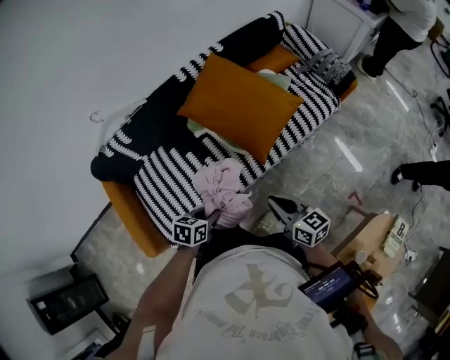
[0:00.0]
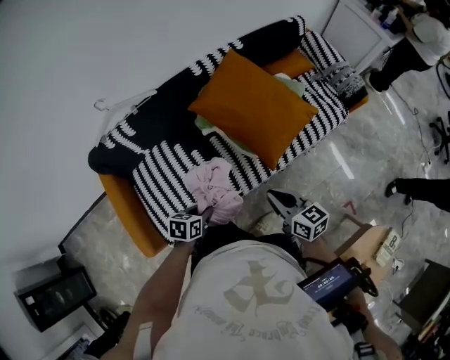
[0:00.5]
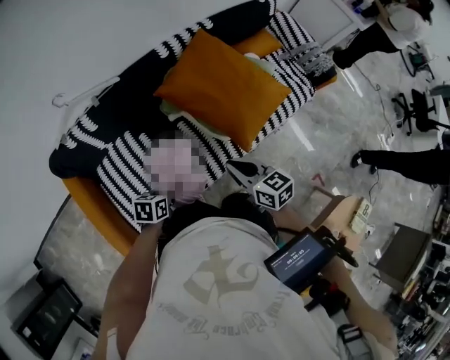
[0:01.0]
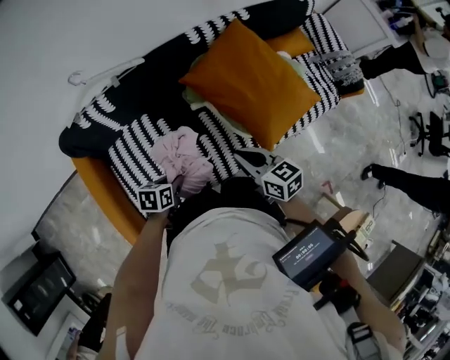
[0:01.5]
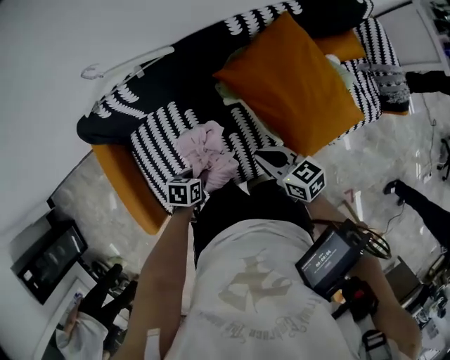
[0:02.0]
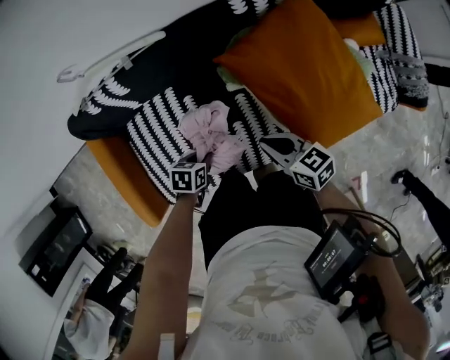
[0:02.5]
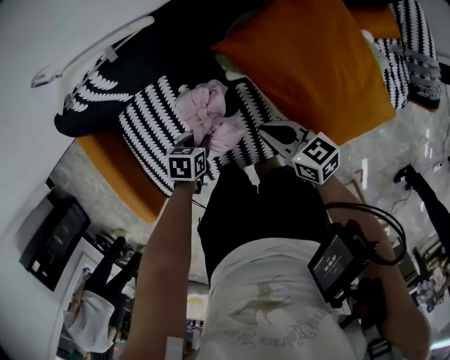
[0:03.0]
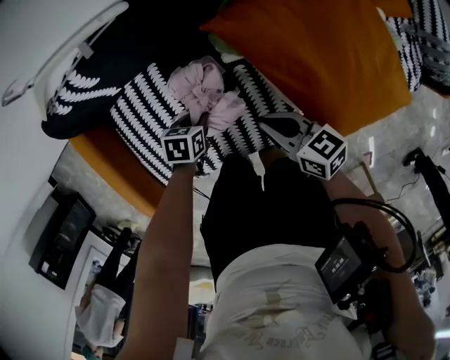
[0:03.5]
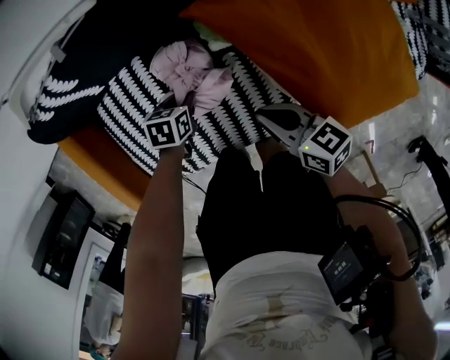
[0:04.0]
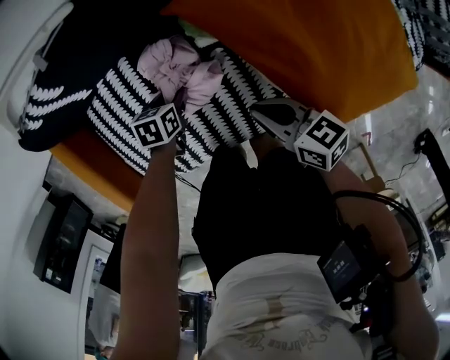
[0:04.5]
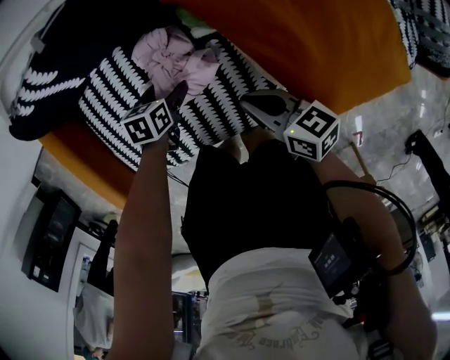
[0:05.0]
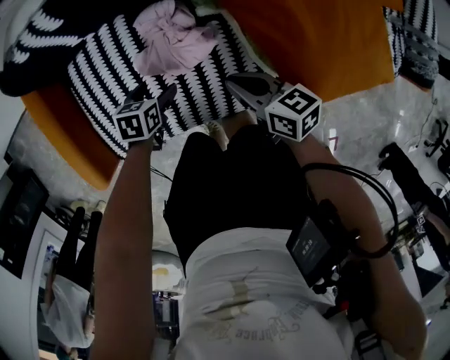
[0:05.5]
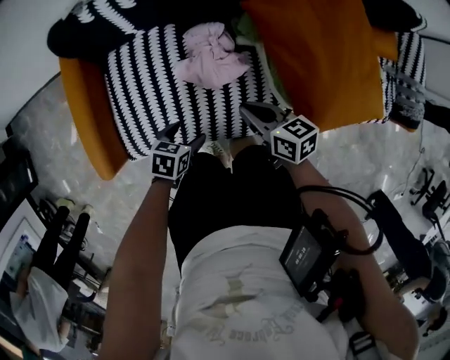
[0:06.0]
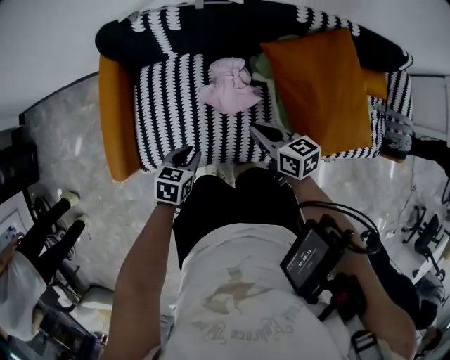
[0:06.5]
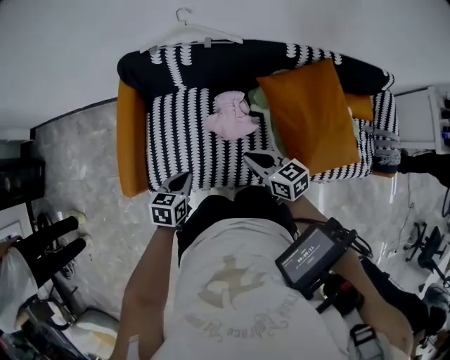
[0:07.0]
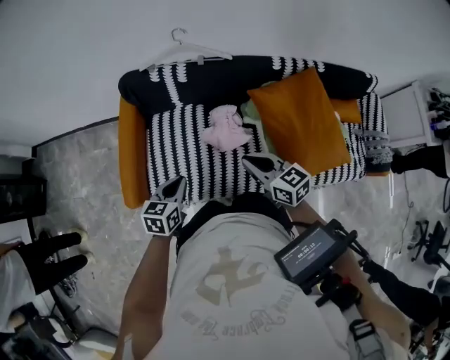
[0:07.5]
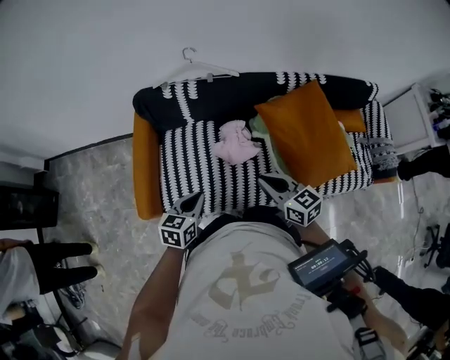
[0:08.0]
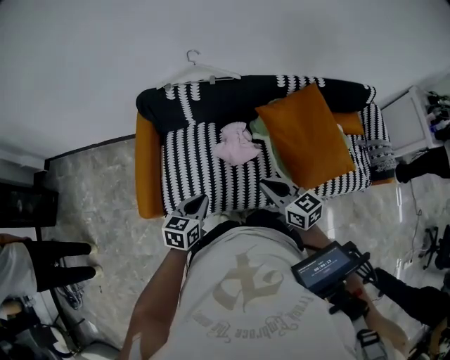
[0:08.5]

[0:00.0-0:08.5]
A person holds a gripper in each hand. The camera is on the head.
0:00.0 to 0:02.0: The left gripper shifts by about 25 cm, and changes its angle by about 20 degrees. Meanwhile the right gripper shifts by approximately 30 cm, and swivels about 30 degrees.
0:02.0 to 0:04.0: The two grippers go roughly 15 cm downward.
0:04.0 to 0:06.5: The left gripper goes some 30 cm backward, upward and to the left, swivels approximately 20 degrees, and opens and closes again, while the right gripper shifts approximately 15 cm to the left, upward and backward.
0:06.5 to 0:08.5: The left gripper shifts some 20 cm upward, and turns by some 20 degrees. The right gripper travels upward and backward by roughly 20 cm, and changes its angle by roughly 20 degrees.

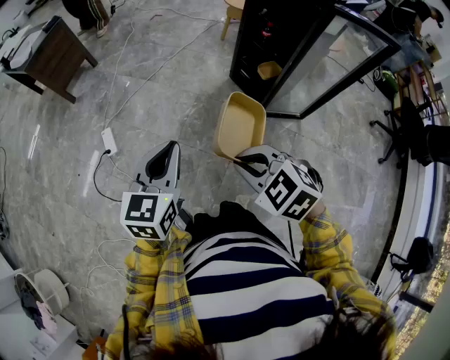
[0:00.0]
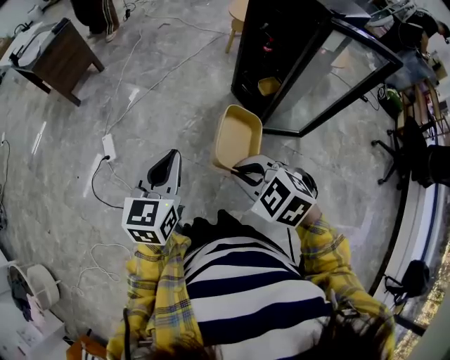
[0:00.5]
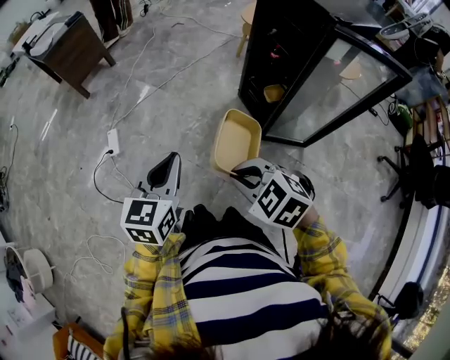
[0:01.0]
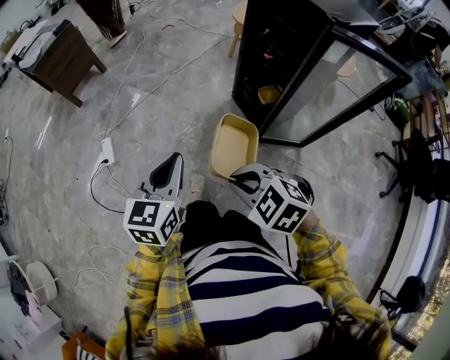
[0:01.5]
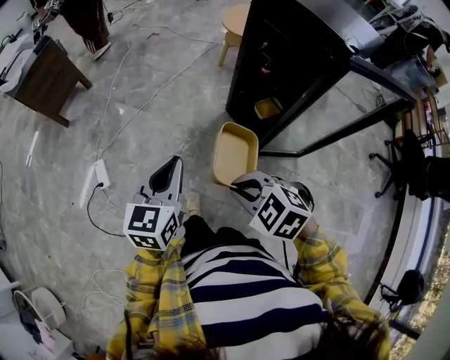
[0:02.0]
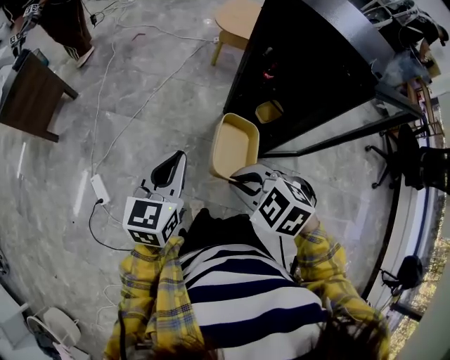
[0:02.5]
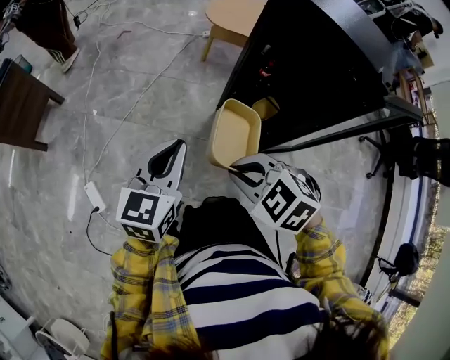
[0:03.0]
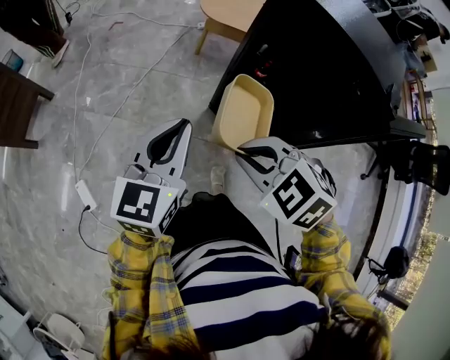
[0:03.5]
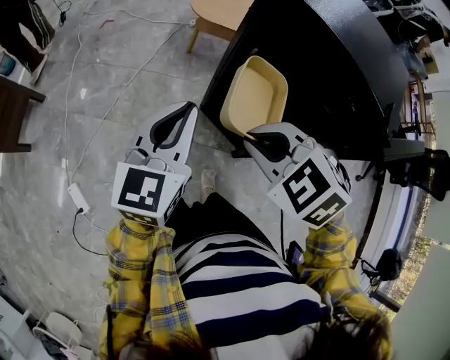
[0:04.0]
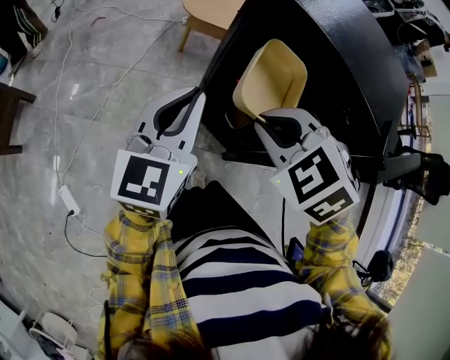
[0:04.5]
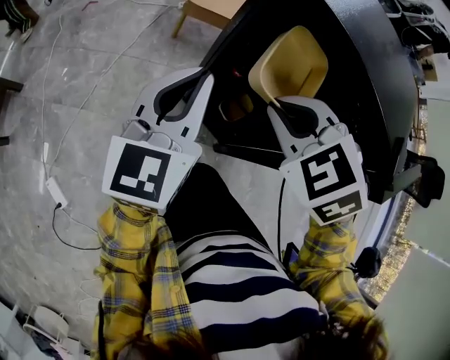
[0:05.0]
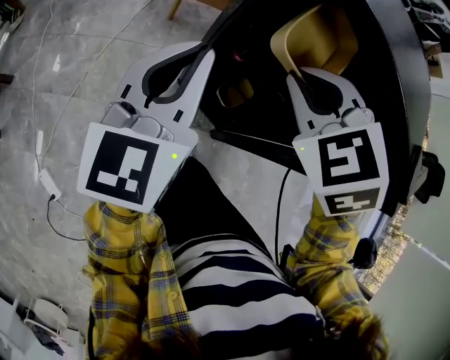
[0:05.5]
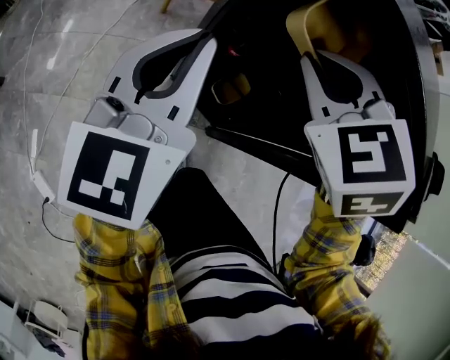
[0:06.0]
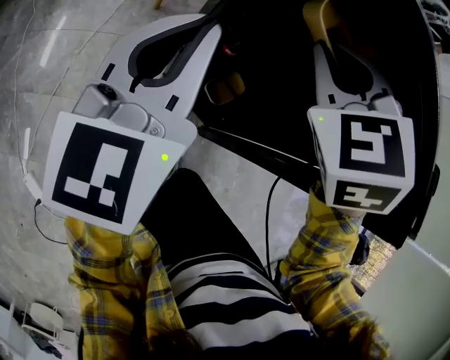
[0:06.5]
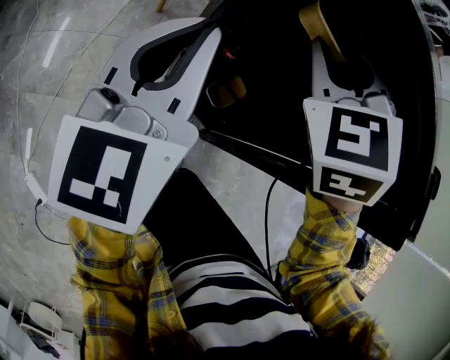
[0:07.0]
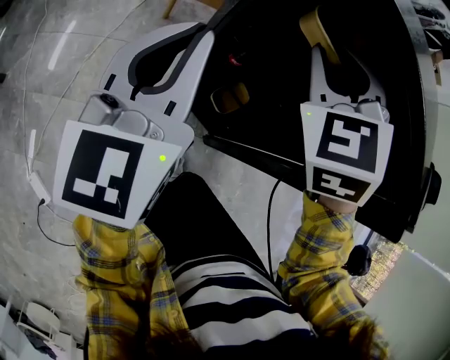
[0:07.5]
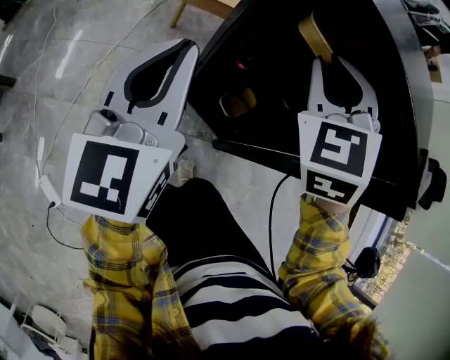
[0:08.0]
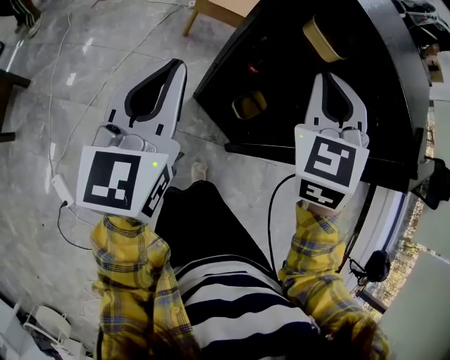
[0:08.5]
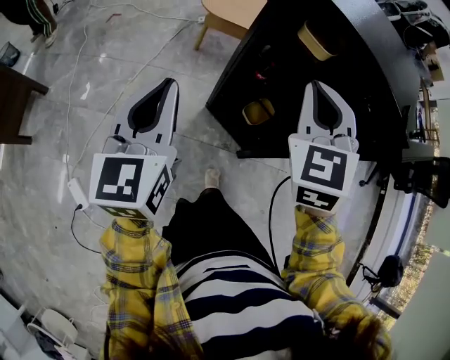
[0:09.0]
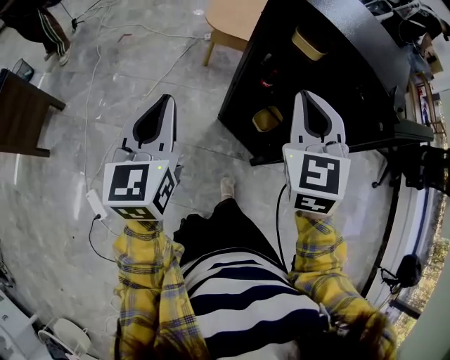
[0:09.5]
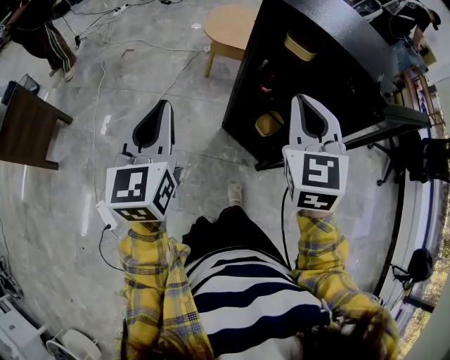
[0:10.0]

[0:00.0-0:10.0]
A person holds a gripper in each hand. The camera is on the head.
0:00.0 to 0:02.0: The grippers both shift forward and to the right by roughly 15 cm.
0:02.0 to 0:04.0: The right gripper is displaced forward by about 30 cm, while the left gripper goes approximately 30 cm forward and to the right.
0:04.0 to 0:06.0: The left gripper goes roughly 15 cm forward and to the right; the right gripper shifts roughly 20 cm forward and to the right, and turns by roughly 30 degrees.
0:06.0 to 0:08.0: The right gripper turns by roughly 20 degrees.
0:08.0 to 0:10.0: The right gripper moves backward, approximately 20 cm, and swivels some 30 degrees, while the left gripper shifts approximately 20 cm backward and to the left.

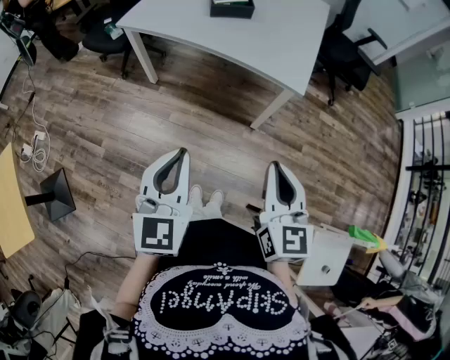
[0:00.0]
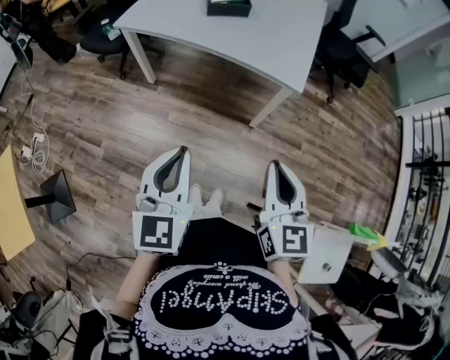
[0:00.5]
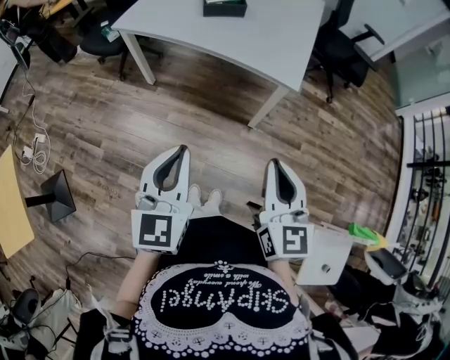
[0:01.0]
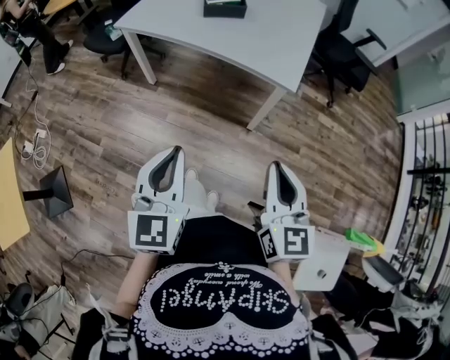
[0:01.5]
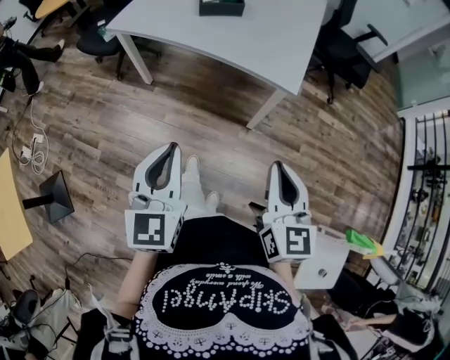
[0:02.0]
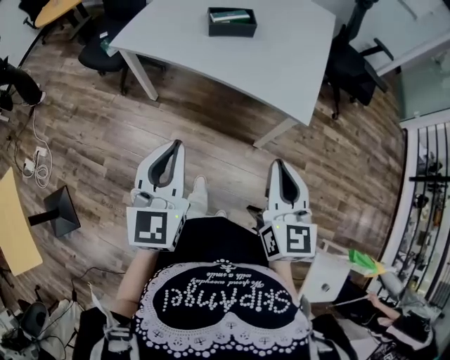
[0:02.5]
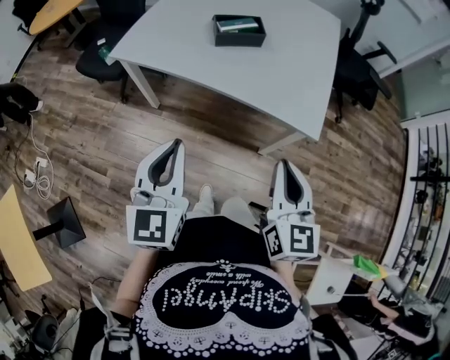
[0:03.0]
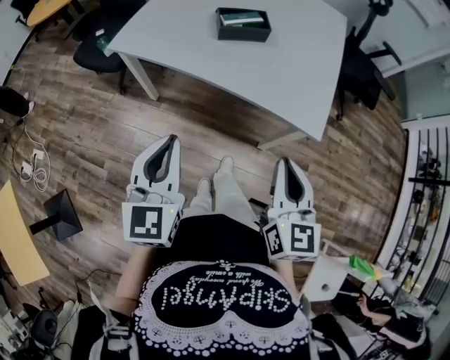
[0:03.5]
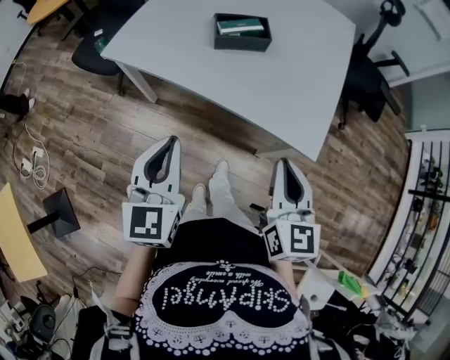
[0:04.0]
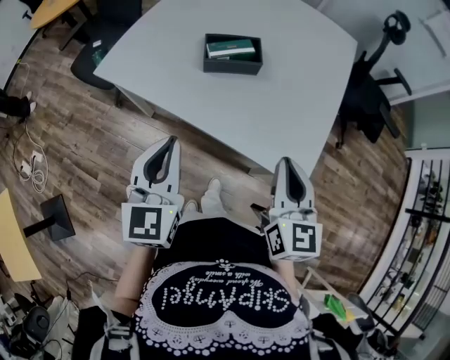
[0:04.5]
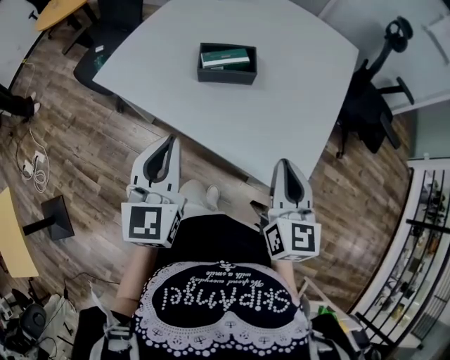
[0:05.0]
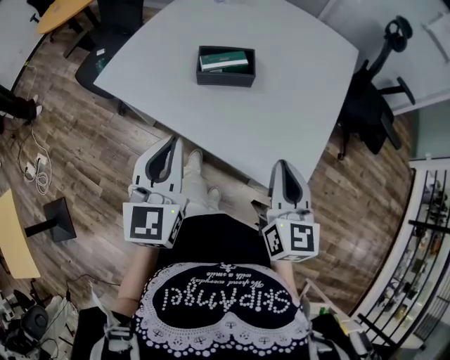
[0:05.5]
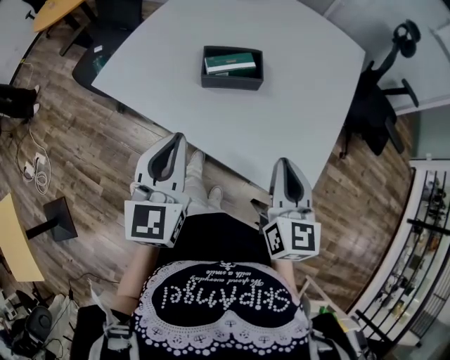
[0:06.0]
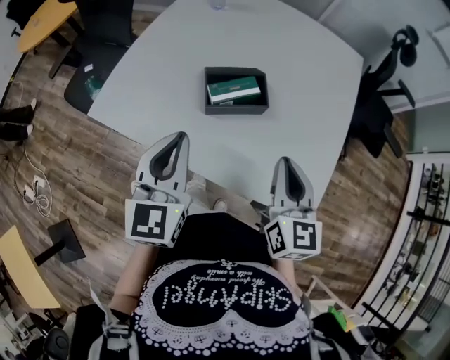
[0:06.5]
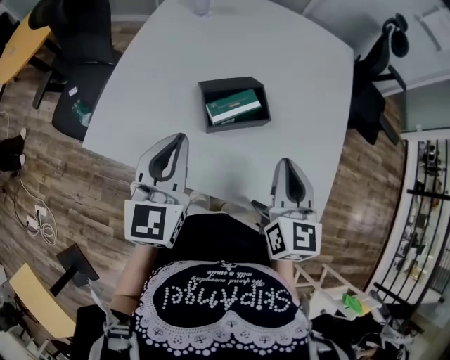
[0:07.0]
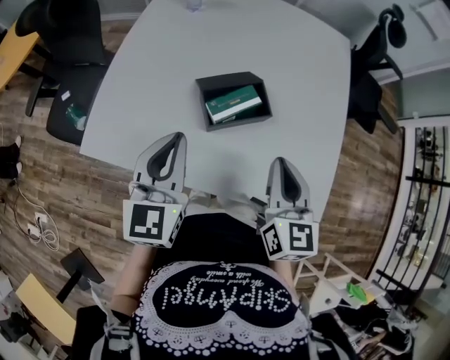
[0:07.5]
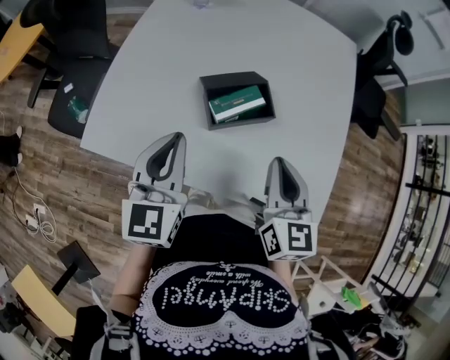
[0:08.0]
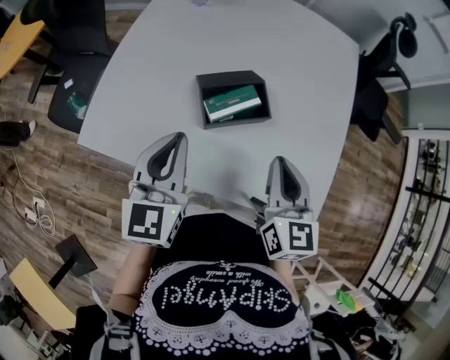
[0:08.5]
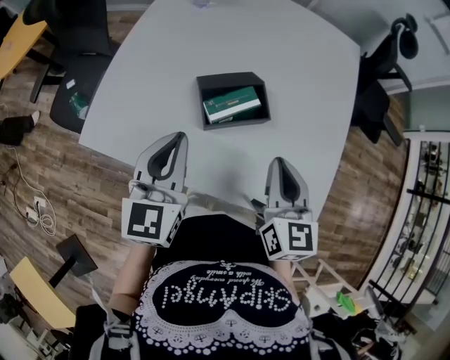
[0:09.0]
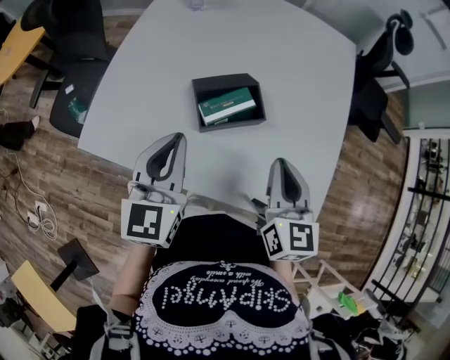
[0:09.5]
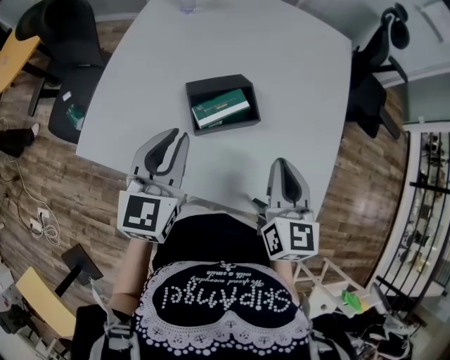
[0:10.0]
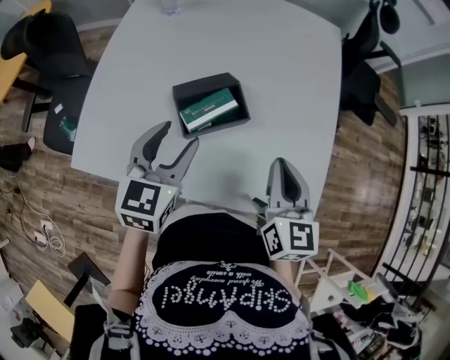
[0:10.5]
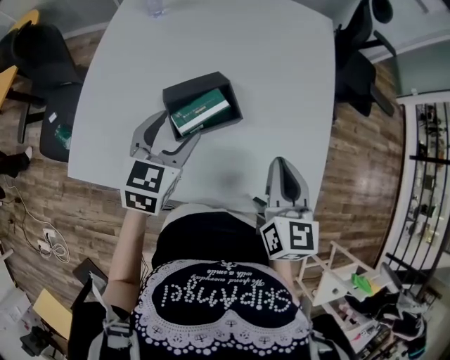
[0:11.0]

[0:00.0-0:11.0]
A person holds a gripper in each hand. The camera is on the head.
0:00.0 to 0:02.0: The left gripper ends up roughly 5 cm from where it was. The right gripper shifts roughly 5 cm to the right.
0:02.0 to 0:03.5: Both grippers move forward and to the left, about 25 cm.
0:03.5 to 0:05.5: The grippers both shift forward and to the right by approximately 25 cm.
0:05.5 to 0:07.5: The two grippers go about 20 cm forward and to the left.
0:07.5 to 0:09.0: There are only small adjustments of the grippers.
0:09.0 to 0:11.0: The right gripper heads to the right, covering roughly 5 cm; the left gripper is displaced forward, downward and to the right by approximately 15 cm, turns by roughly 30 degrees, and opens its fingers.
